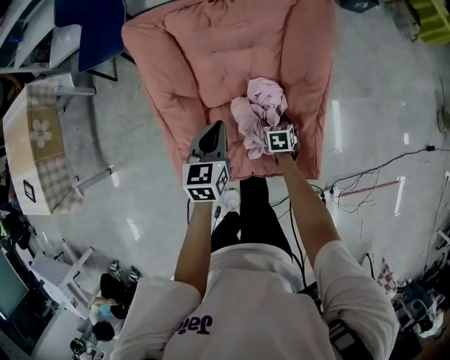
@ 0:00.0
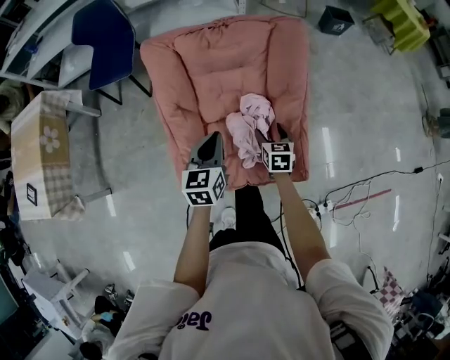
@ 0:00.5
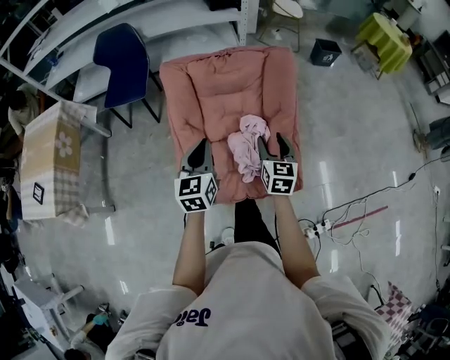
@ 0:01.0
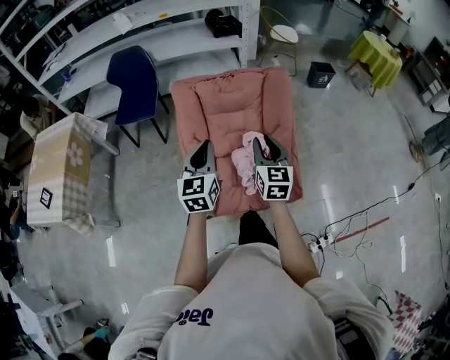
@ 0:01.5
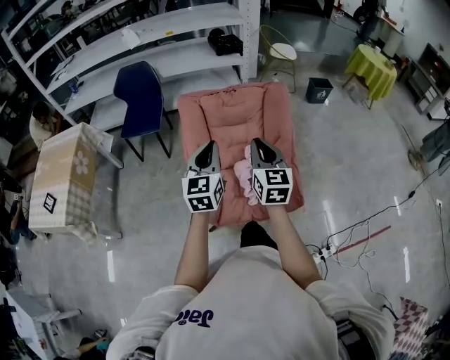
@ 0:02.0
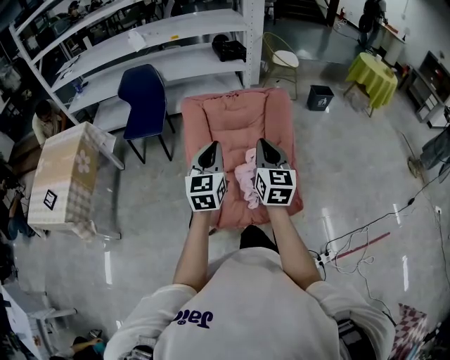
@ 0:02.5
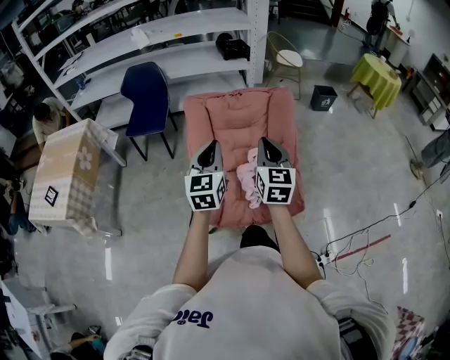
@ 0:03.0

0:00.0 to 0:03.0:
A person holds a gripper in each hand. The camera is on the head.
0:00.0 to 0:01.5: The left gripper is displaced upward and backward by some 30 cm, and turns by some 30 degrees; the right gripper shifts roughly 40 cm upward, angles its fingers upward, by some 50 degrees, and closes.
0:01.5 to 0:03.0: The left gripper moves approximately 5 cm. Meanwhile the right gripper moves upward, approximately 10 cm.

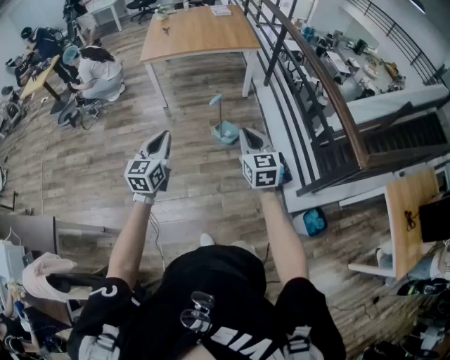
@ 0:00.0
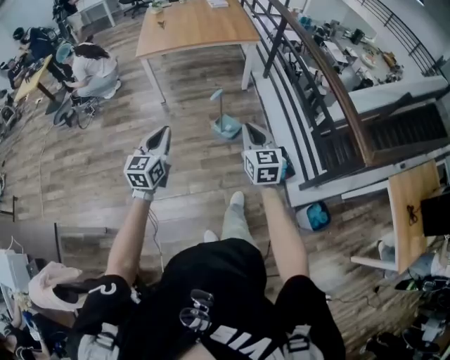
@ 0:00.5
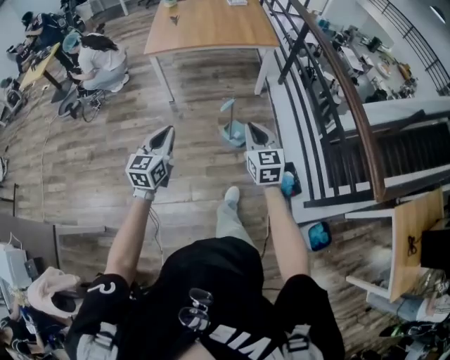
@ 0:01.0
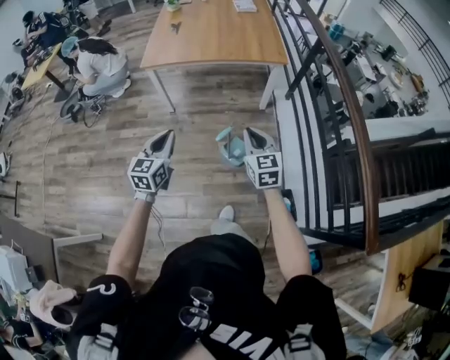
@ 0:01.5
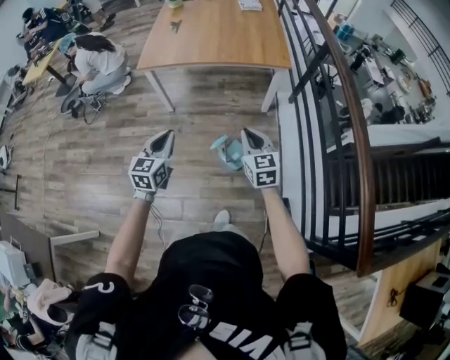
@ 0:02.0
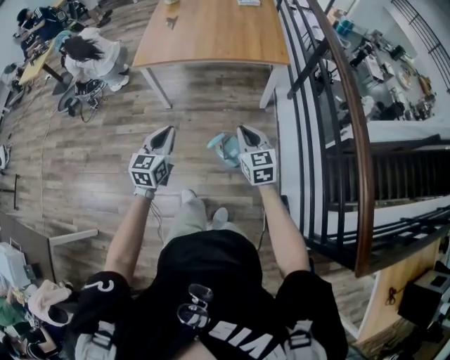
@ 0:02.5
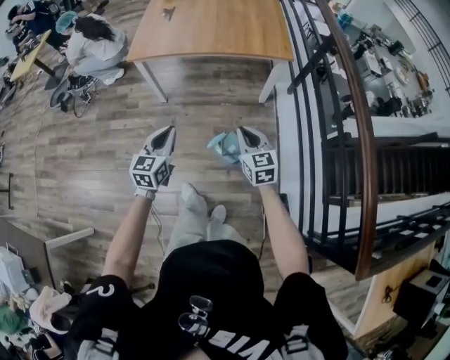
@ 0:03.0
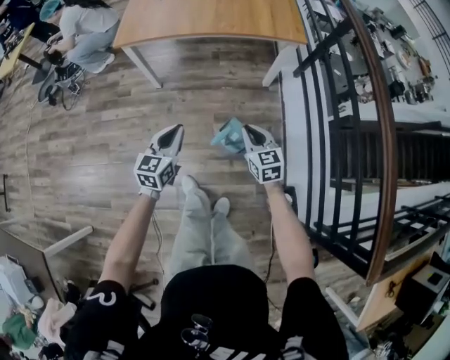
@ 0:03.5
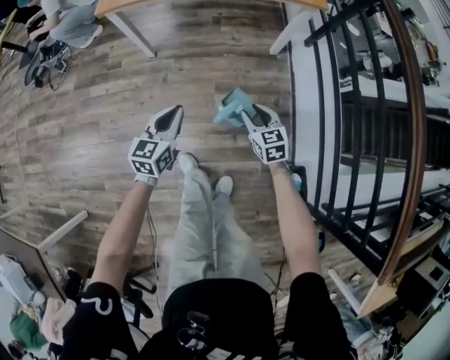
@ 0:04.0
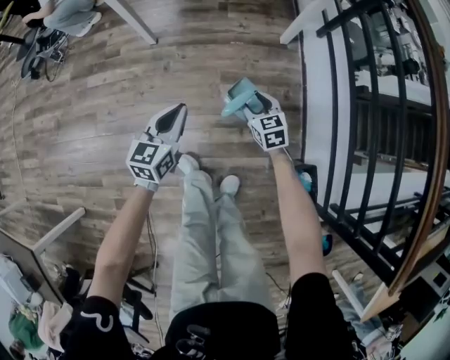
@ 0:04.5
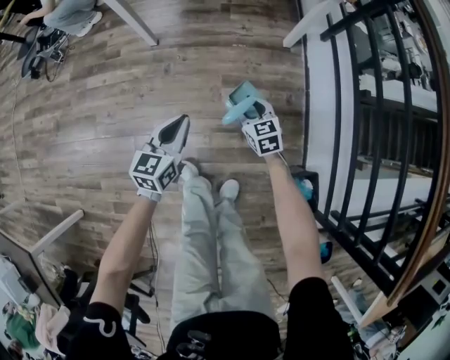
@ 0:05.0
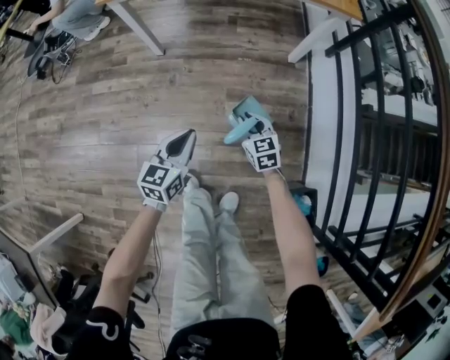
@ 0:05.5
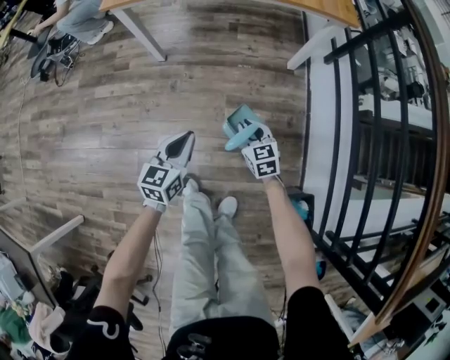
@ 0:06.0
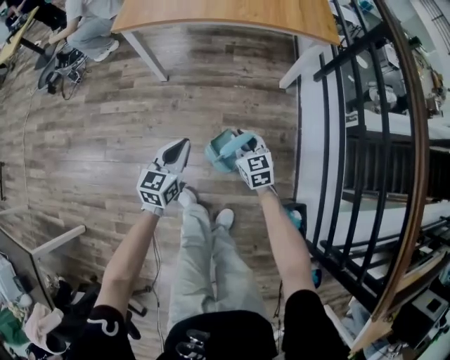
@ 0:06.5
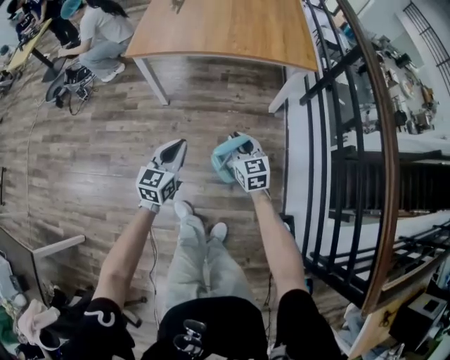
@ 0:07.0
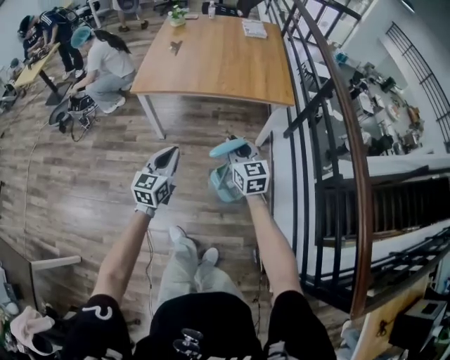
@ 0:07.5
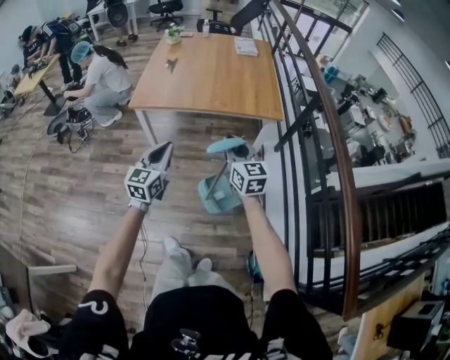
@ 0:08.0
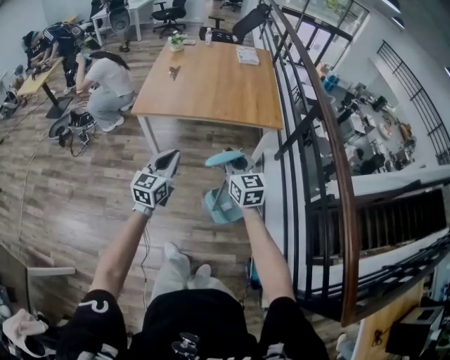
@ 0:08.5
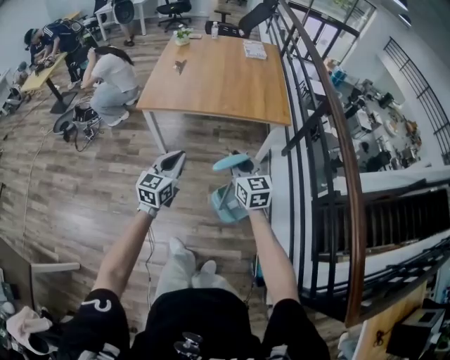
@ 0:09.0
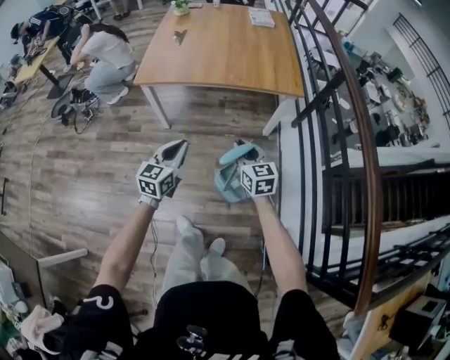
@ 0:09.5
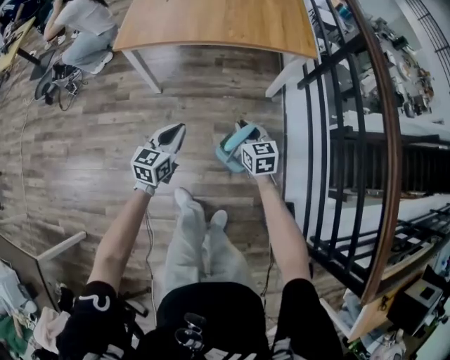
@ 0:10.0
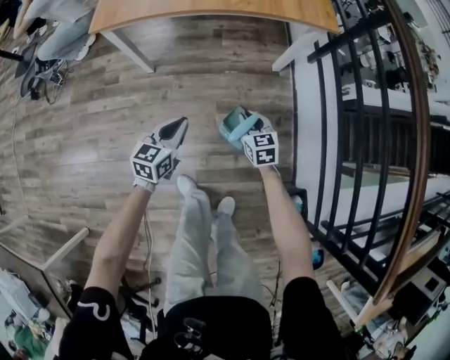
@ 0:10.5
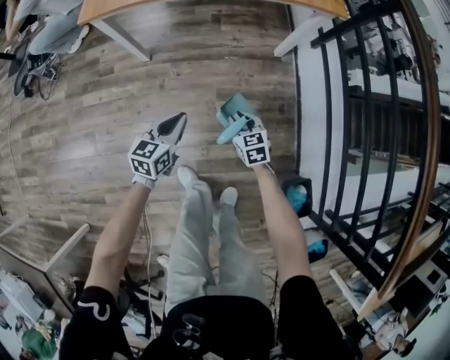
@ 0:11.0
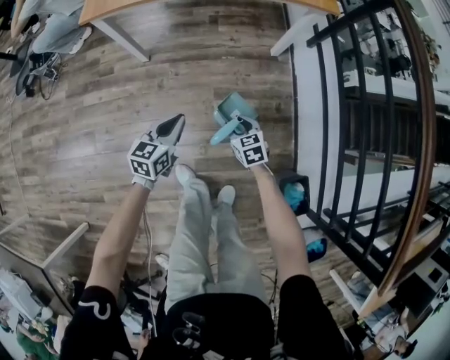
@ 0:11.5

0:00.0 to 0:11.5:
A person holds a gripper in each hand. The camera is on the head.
0:00.0 to 0:02.0: Both grippers are carried forward, roughly 50 cm.
0:02.0 to 0:04.0: The right gripper heads downward, covering roughly 35 cm, and opens up. Meanwhile the left gripper travels downward and forward by some 30 cm.
0:04.0 to 0:06.0: The right gripper travels downward and to the left by roughly 15 cm. Meanwhile the left gripper is displaced downward by roughly 10 cm.
0:06.0 to 0:07.5: The grippers both shift upward by about 40 cm. The right gripper changes its angle by about 20 degrees.
0:07.5 to 0:09.5: The left gripper goes upward and returns, some 10 cm each way. Meanwhile the right gripper reaches approximately 10 cm upward, then returns.
0:09.5 to 0:11.5: The two grippers go approximately 35 cm downward. The right gripper changes its angle by about 30 degrees, and opens.

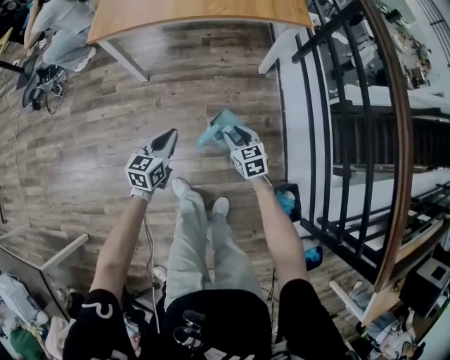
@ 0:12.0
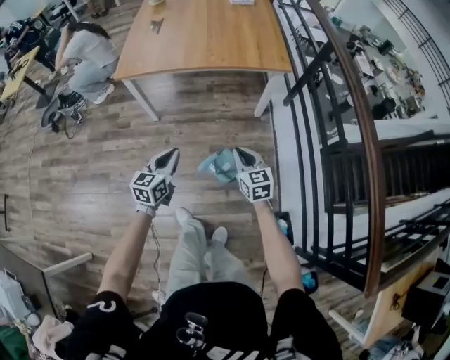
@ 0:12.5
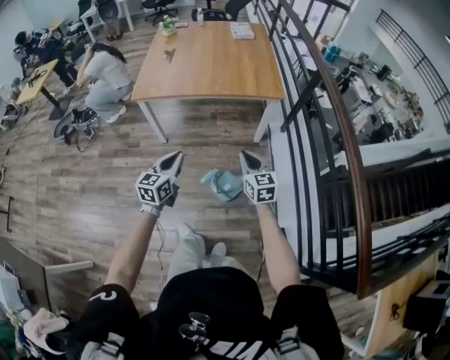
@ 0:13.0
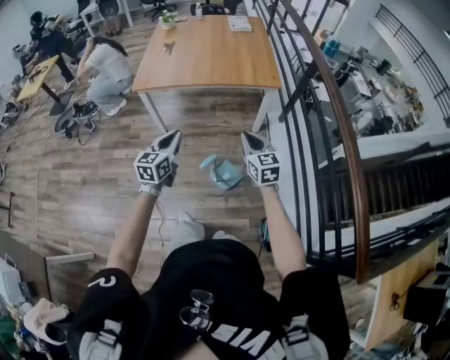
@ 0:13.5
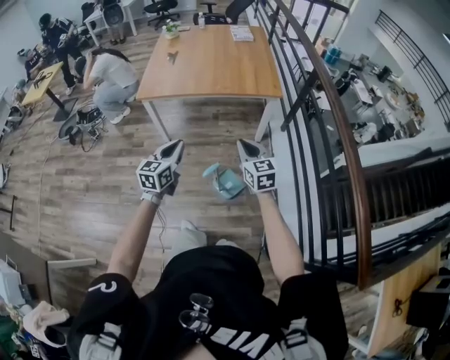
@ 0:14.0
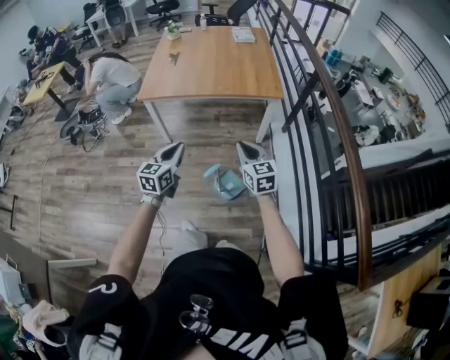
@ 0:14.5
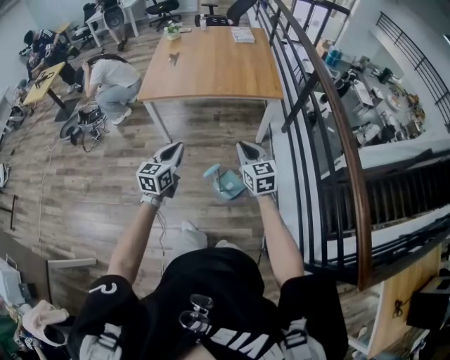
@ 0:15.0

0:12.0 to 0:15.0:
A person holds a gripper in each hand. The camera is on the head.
0:12.0 to 0:13.5: The grippers both shift upward by some 35 cm. The right gripper changes its angle by about 20 degrees, and closes up.
0:13.5 to 0:15.0: The grippers make only small movements.

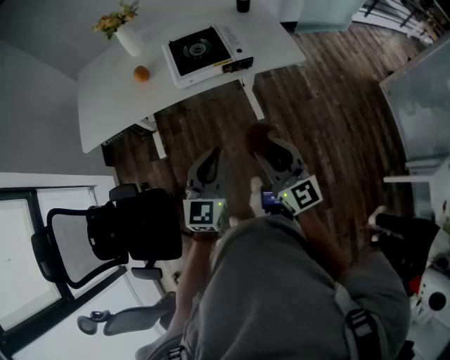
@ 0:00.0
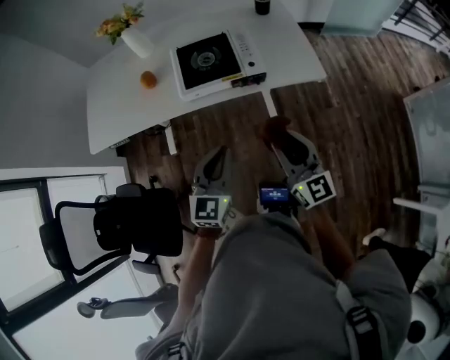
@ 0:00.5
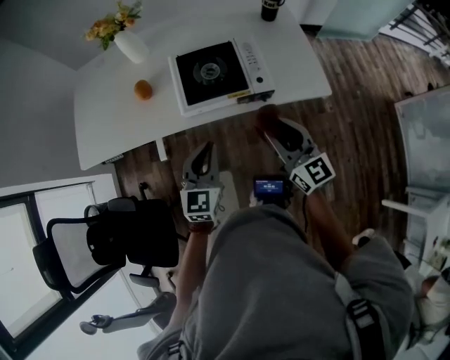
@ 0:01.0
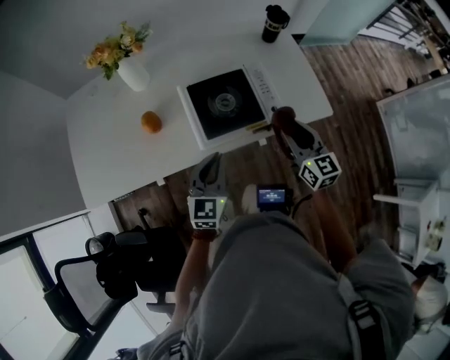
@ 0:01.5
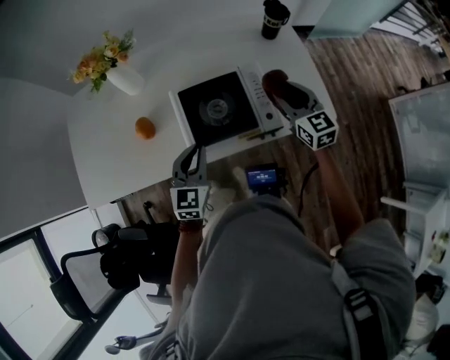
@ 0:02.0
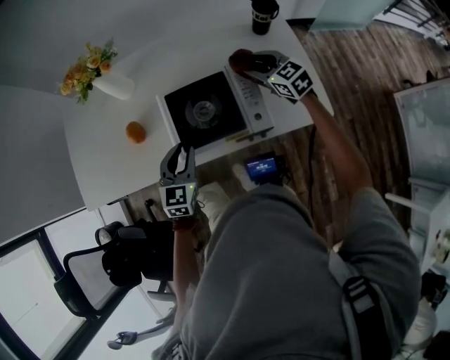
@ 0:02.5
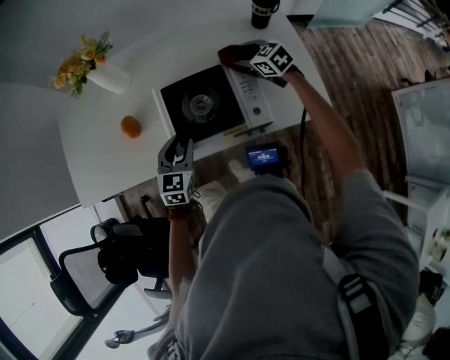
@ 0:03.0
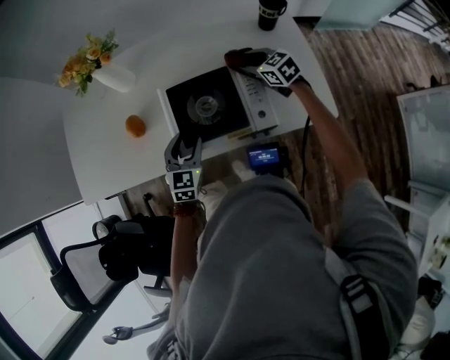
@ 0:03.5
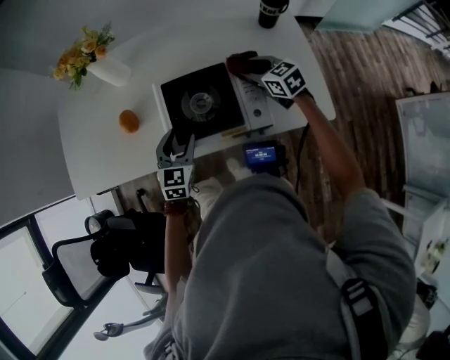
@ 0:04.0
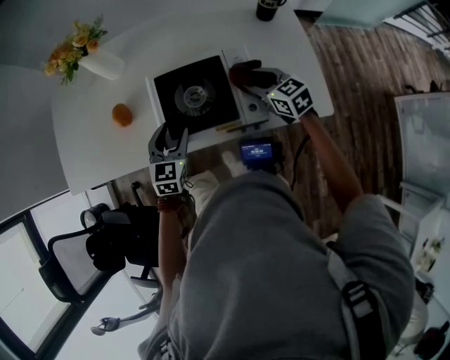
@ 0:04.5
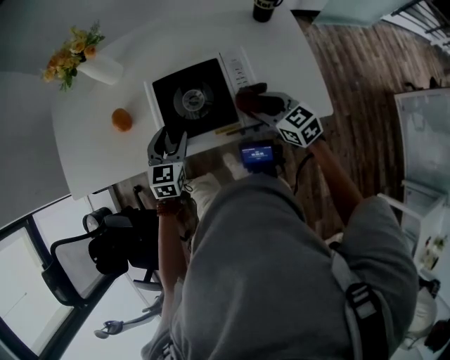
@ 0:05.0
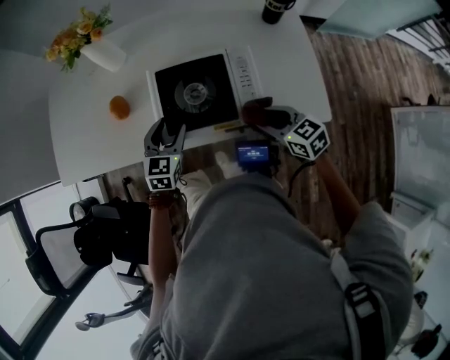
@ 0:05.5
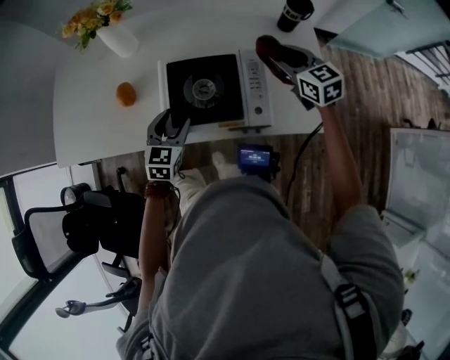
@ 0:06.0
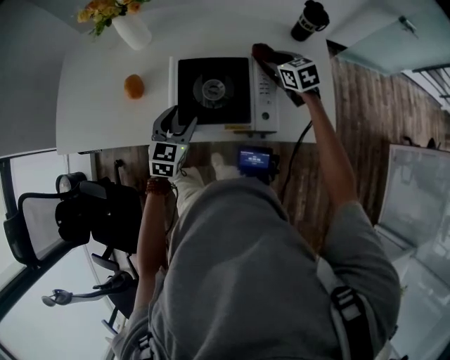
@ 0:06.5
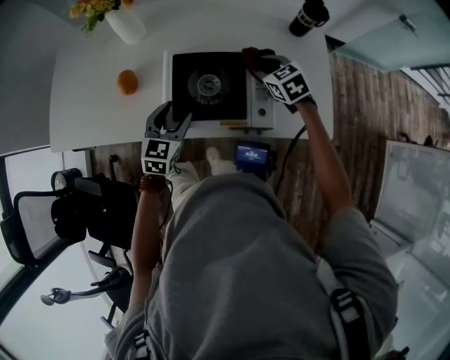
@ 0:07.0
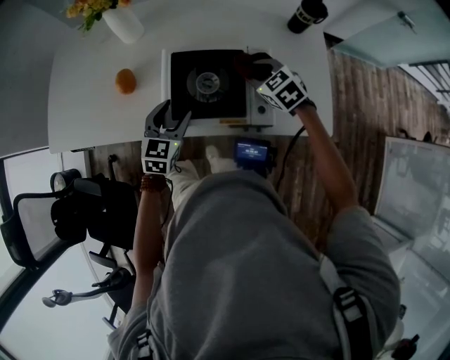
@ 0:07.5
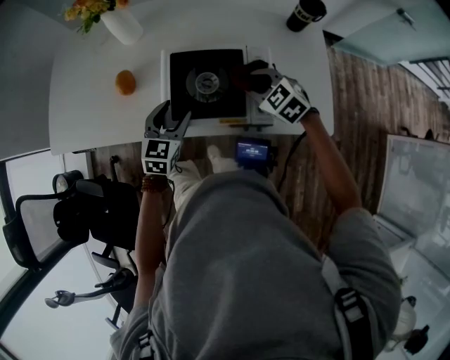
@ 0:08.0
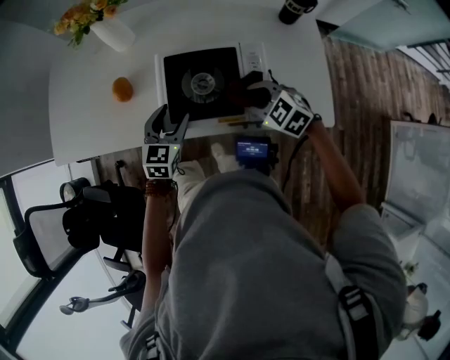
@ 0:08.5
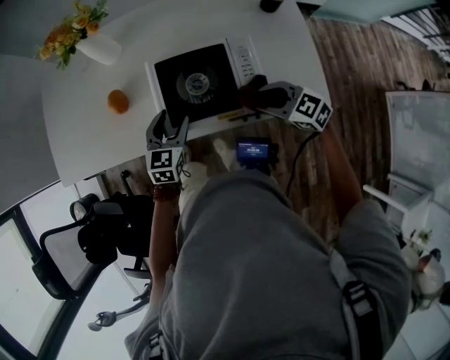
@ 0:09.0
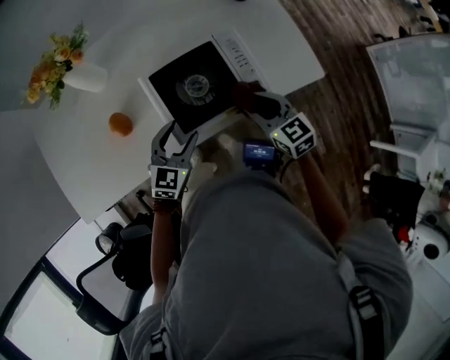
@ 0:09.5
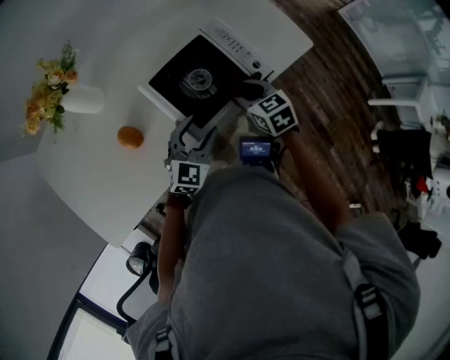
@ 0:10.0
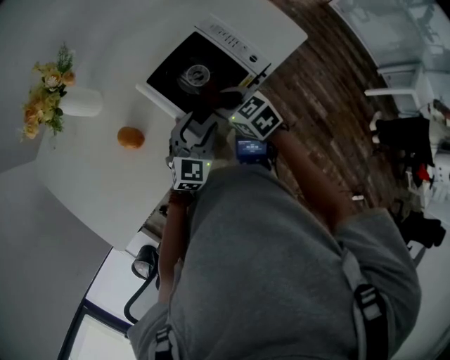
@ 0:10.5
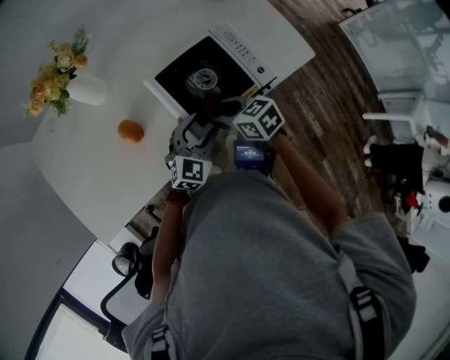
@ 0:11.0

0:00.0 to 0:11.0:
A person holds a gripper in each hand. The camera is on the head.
0:00.0 to 0:02.0: Both grippers travel together forward, roughly 40 cm.
0:02.0 to 0:03.5: The left gripper heads downward, covering some 10 cm, and opens, while the right gripper heads forward and downward, covering roughly 20 cm, and rotates some 30 degrees.
0:03.5 to 0:05.5: The right gripper travels backward by about 20 cm.
0:05.5 to 0:07.5: The right gripper moves forward, some 15 cm, and swivels some 30 degrees.
0:07.5 to 0:09.0: The right gripper moves backward, roughly 15 cm, and rotates some 20 degrees.
0:09.0 to 0:11.0: The left gripper rotates about 50 degrees. The right gripper ends up approximately 20 cm from where it was, and rotates around the line of its fingers by roughly 40 degrees, clockwise from behind.
